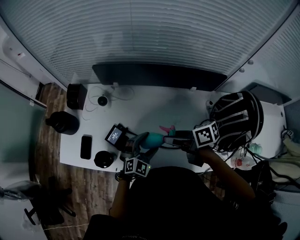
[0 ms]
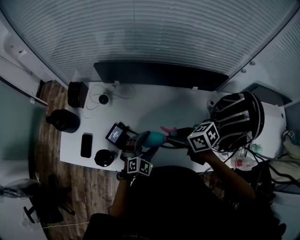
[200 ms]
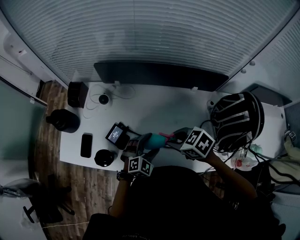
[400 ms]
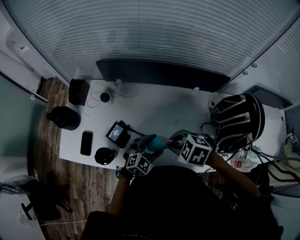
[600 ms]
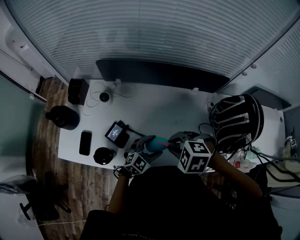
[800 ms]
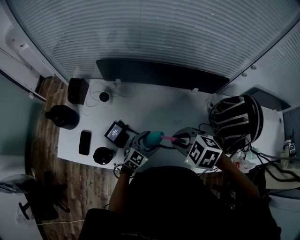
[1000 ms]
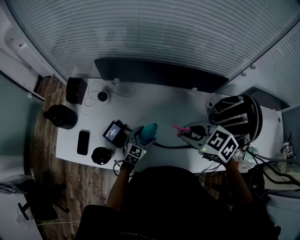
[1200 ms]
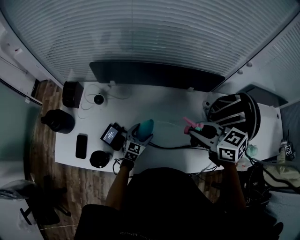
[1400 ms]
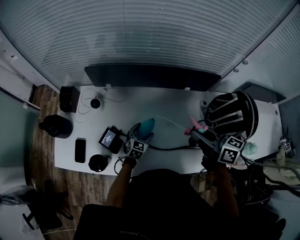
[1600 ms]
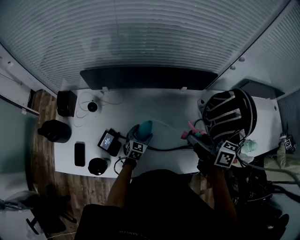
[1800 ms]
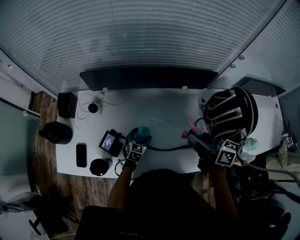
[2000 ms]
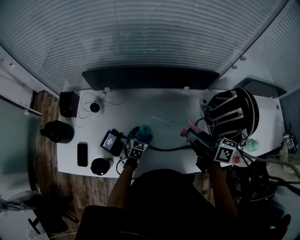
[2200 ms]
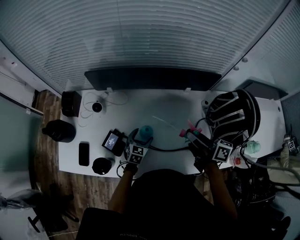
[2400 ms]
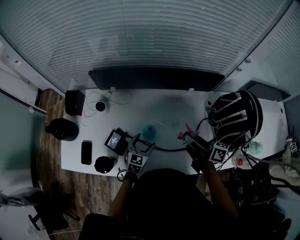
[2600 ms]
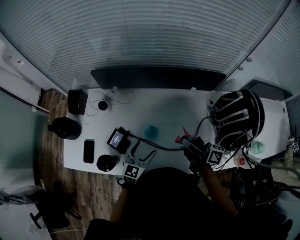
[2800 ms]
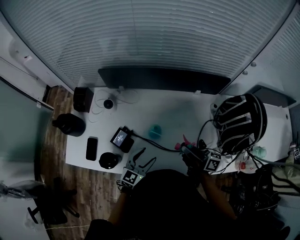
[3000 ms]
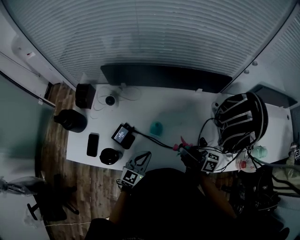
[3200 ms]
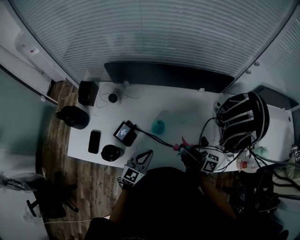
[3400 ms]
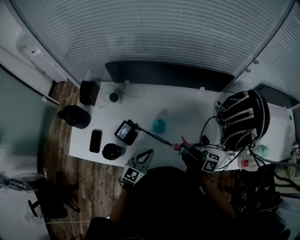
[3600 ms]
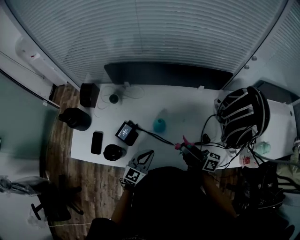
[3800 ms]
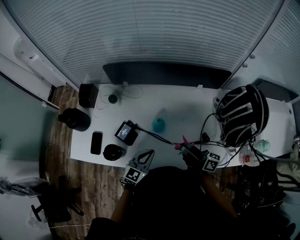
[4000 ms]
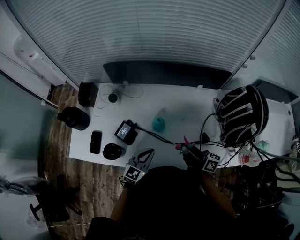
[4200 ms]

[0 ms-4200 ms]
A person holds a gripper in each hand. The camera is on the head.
0 ms to 1400 ms: The right gripper moves approximately 10 cm, rotates roughly 40 degrees, and closes; the left gripper shifts some 10 cm downward, and swivels some 30 degrees.
1400 ms to 2800 ms: The left gripper heads upward and backward, covering some 10 cm; the right gripper shifts approximately 10 cm downward, and angles its fingers upward, by roughly 30 degrees.
2800 ms to 4200 ms: Both grippers travel together backward, approximately 10 cm. The left gripper closes its fingers.

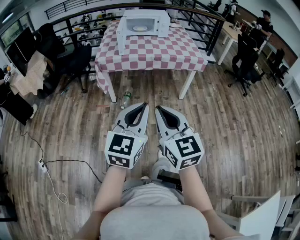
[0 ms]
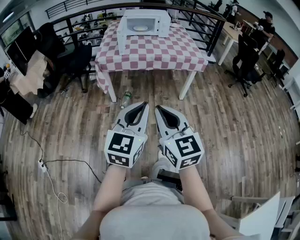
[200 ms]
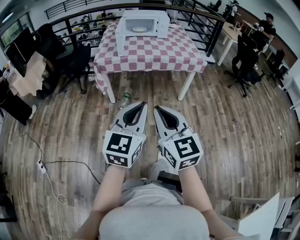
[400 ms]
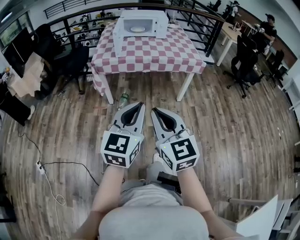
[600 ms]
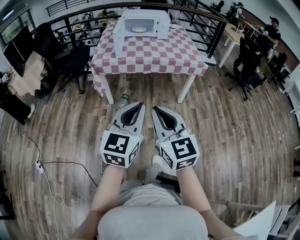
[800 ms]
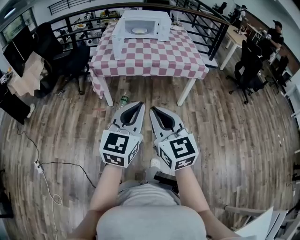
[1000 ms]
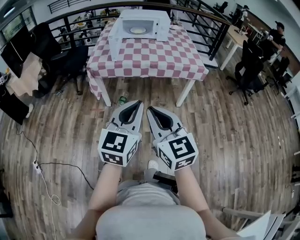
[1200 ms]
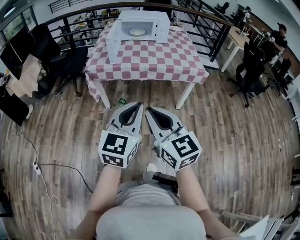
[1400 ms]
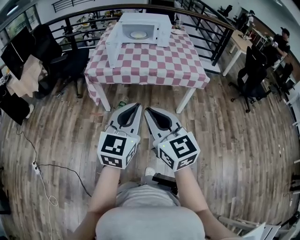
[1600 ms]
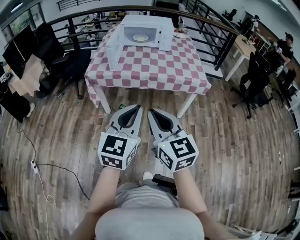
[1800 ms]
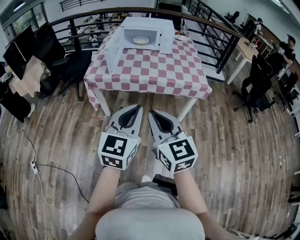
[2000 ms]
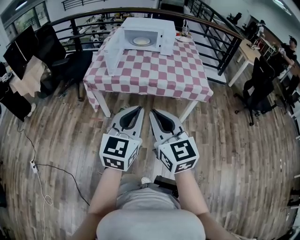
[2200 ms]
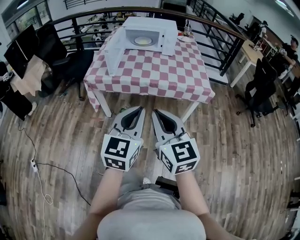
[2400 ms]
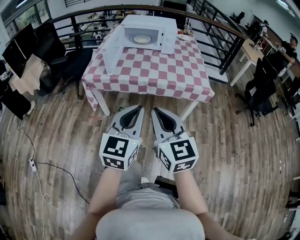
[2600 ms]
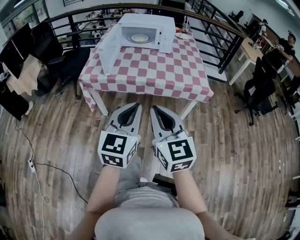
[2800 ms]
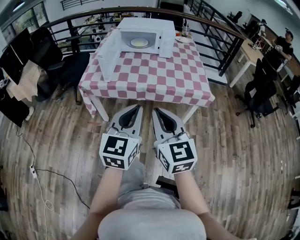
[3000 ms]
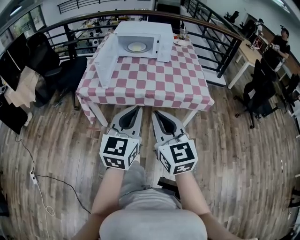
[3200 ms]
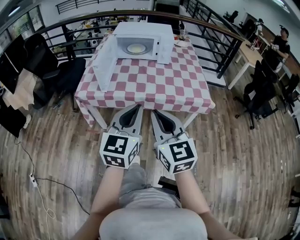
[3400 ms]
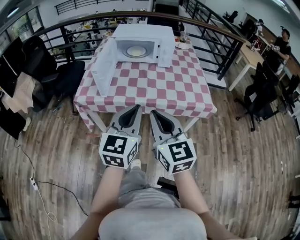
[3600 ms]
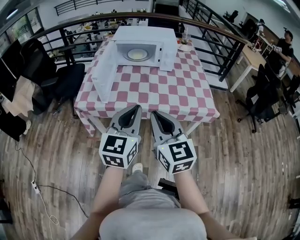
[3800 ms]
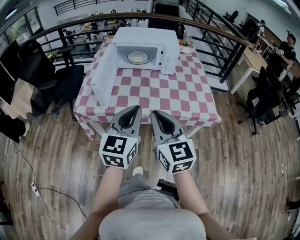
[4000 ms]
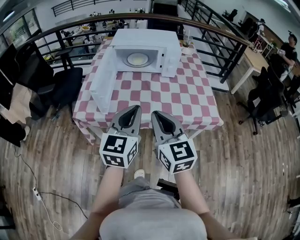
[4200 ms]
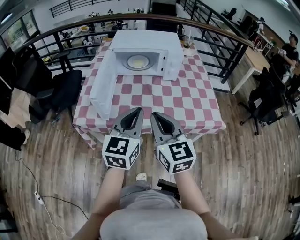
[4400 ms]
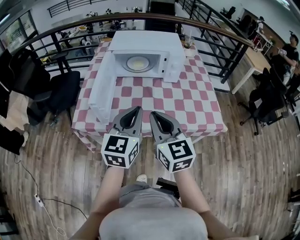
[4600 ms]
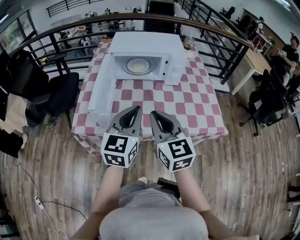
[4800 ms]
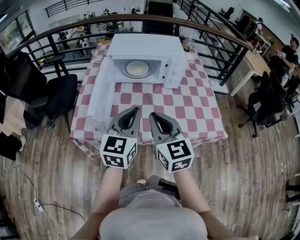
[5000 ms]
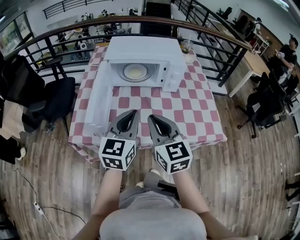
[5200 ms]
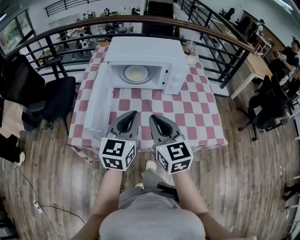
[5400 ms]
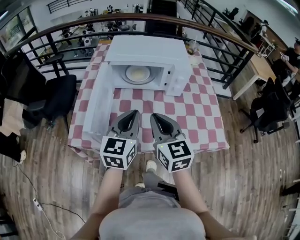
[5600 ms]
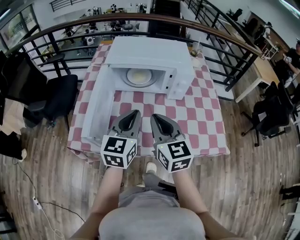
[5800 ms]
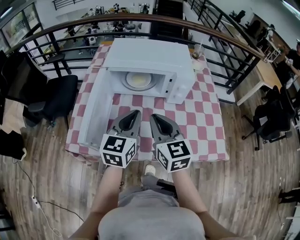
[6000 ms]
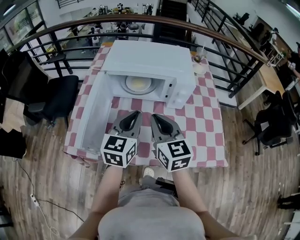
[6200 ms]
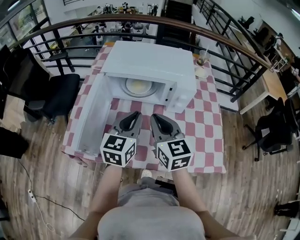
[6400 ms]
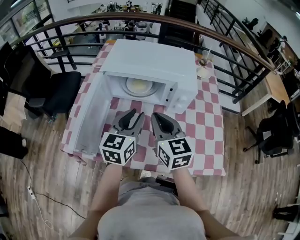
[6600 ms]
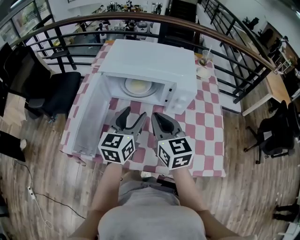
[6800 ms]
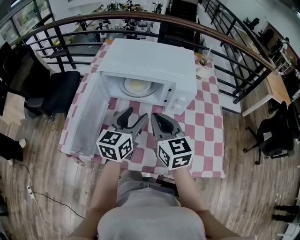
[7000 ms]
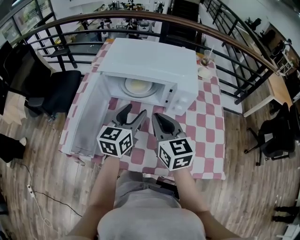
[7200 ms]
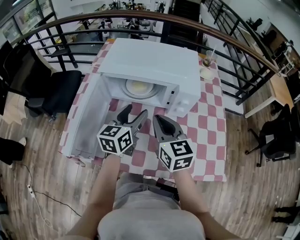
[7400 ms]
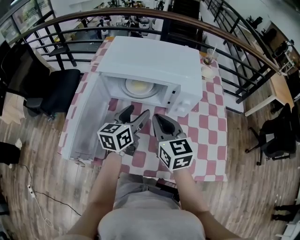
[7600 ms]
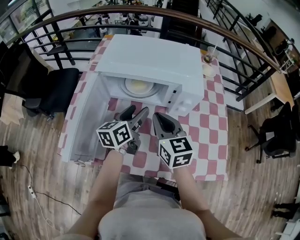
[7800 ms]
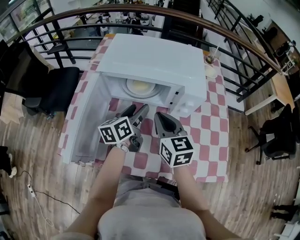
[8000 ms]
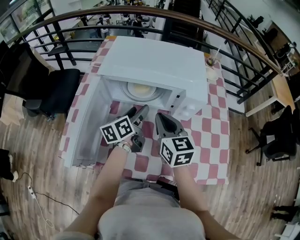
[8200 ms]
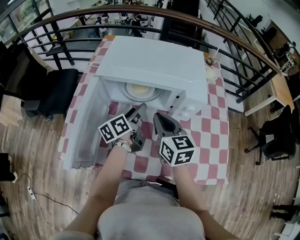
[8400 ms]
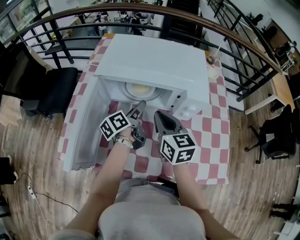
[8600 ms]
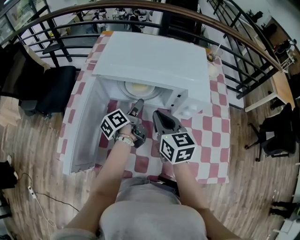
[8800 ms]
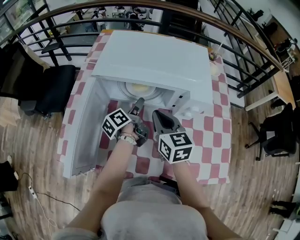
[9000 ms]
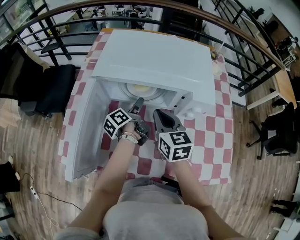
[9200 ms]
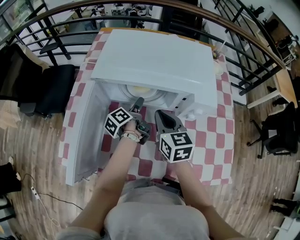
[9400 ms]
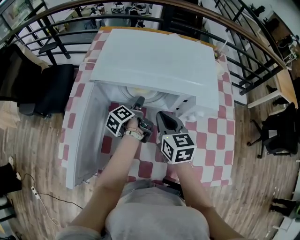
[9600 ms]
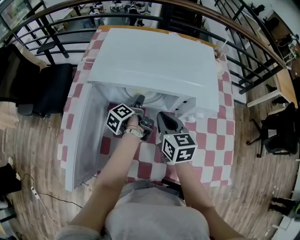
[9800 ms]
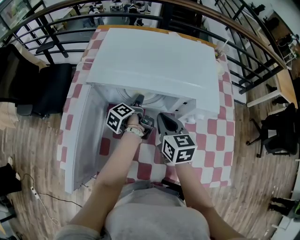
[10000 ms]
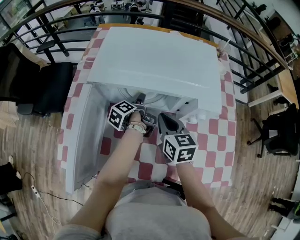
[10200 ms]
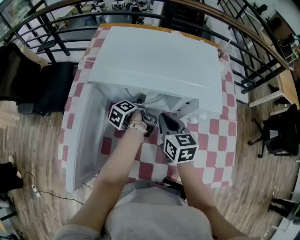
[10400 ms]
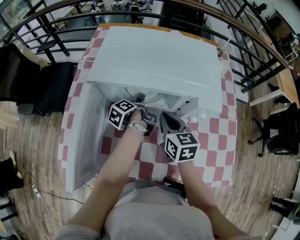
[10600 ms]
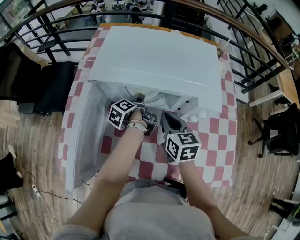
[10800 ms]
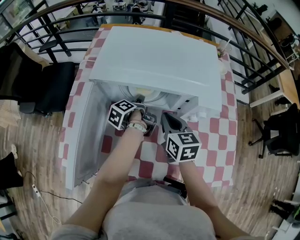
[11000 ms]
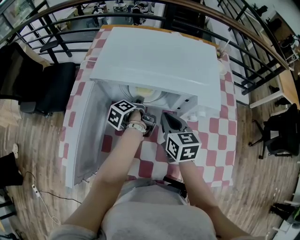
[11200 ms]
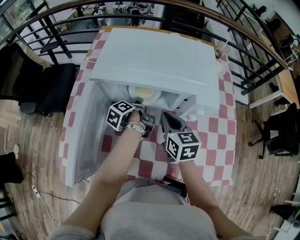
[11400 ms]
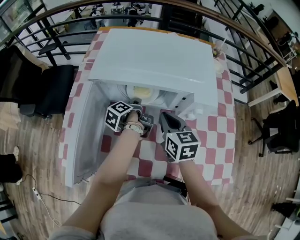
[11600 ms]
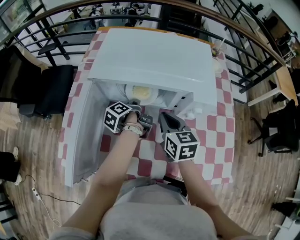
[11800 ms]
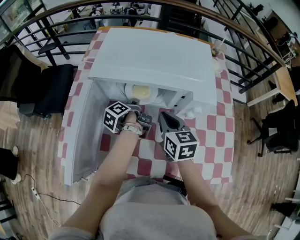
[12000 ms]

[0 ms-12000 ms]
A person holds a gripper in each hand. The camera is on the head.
0 ms to 1600 ms: Both grippers travel together forward, about 20 cm.
1600 ms to 3000 ms: The left gripper goes approximately 15 cm forward. The right gripper goes about 20 cm forward and to the right.
3000 ms to 4400 ms: Both grippers travel together forward, approximately 25 cm.
4400 ms to 6000 ms: The grippers both shift forward by about 20 cm.
6000 ms to 7600 ms: The left gripper heads forward and downward, covering approximately 15 cm, swivels roughly 20 degrees, and opens up. Meanwhile the right gripper goes about 10 cm forward.
7600 ms to 9000 ms: The left gripper moves downward and forward, some 15 cm, and rolls counterclockwise, seen from behind, by about 50 degrees; the right gripper shifts some 5 cm forward.
9000 ms to 10400 ms: Both grippers travel together downward, some 5 cm. The left gripper swivels some 20 degrees.
10400 ms to 12000 ms: The left gripper closes.

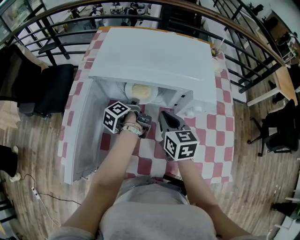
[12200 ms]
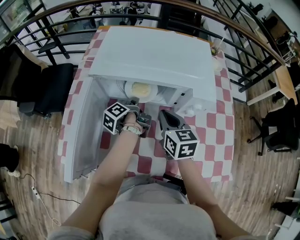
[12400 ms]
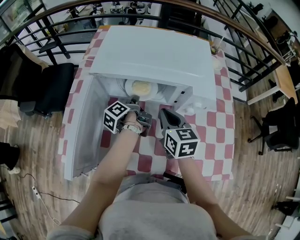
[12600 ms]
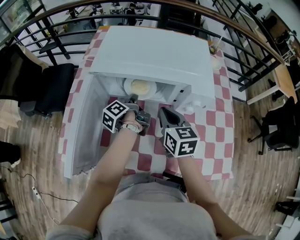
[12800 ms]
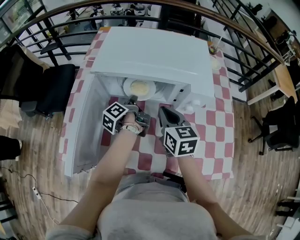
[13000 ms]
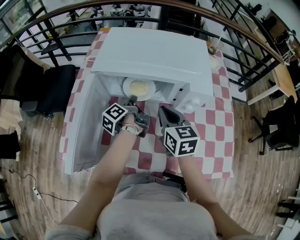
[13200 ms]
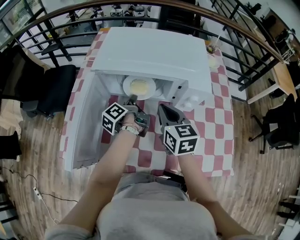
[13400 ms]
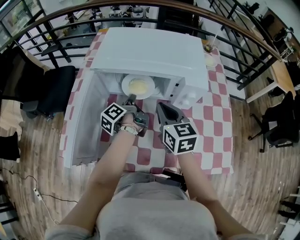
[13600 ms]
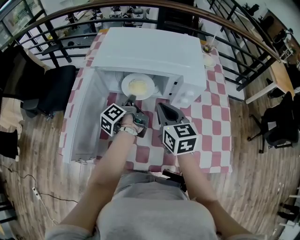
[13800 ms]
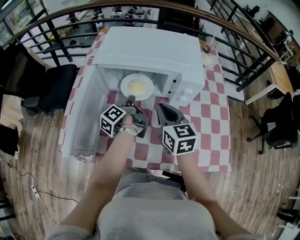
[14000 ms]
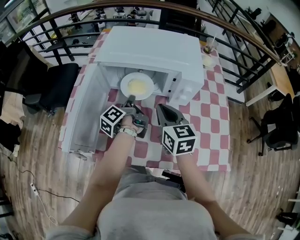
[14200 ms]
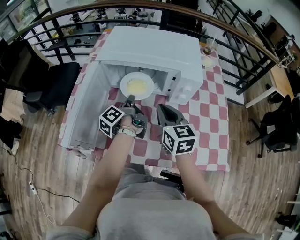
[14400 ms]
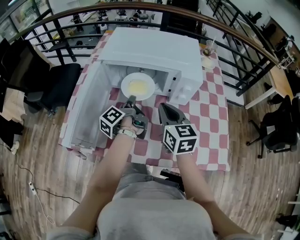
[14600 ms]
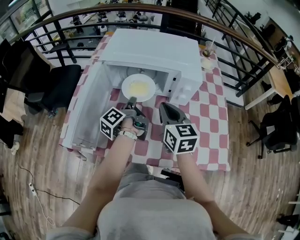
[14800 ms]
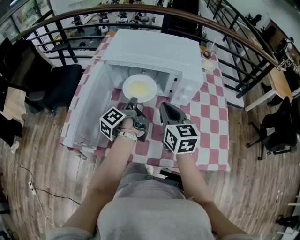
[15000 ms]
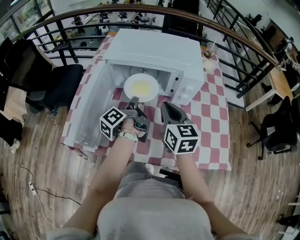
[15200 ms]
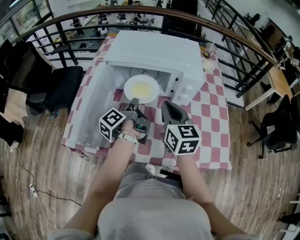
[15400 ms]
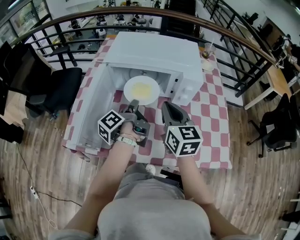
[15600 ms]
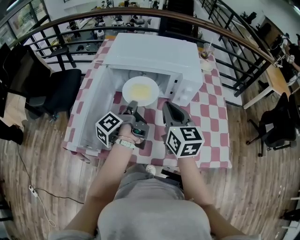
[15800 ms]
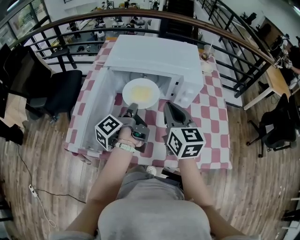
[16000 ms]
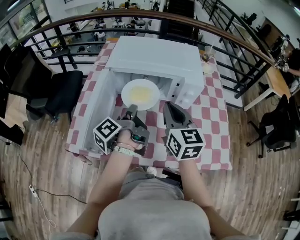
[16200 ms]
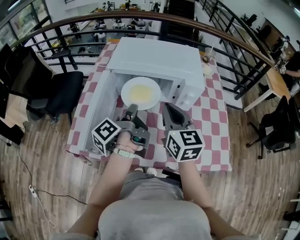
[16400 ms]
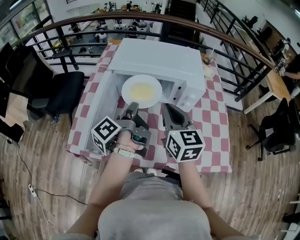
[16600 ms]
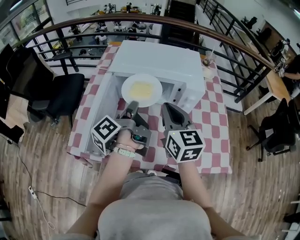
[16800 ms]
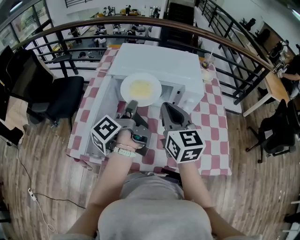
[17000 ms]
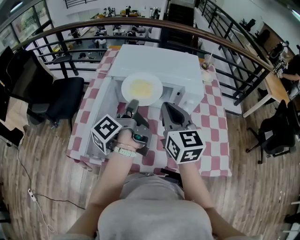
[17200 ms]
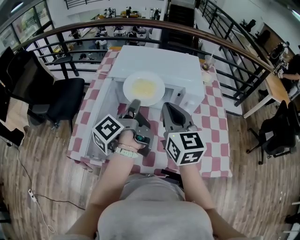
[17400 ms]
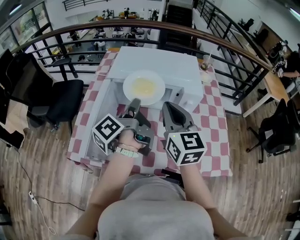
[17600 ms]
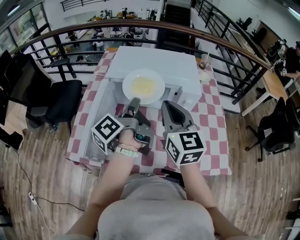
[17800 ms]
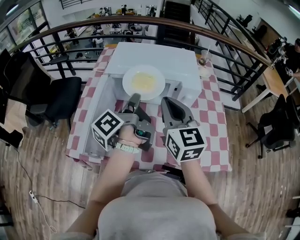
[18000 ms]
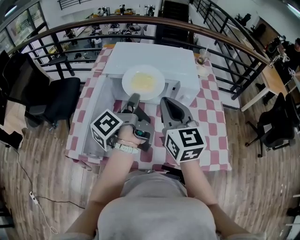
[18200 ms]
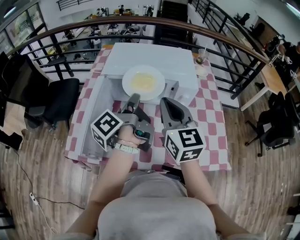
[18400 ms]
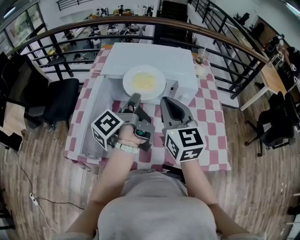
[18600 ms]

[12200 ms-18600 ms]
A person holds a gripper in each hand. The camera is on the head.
12200 ms to 13800 ms: The right gripper moves about 5 cm. The left gripper changes place by roughly 5 cm.
13800 ms to 15400 ms: The right gripper goes about 5 cm backward. The left gripper is displaced backward and upward by approximately 10 cm.
15400 ms to 17000 ms: Both grippers travel together upward, approximately 10 cm.
17000 ms to 18600 ms: The grippers make only small movements.

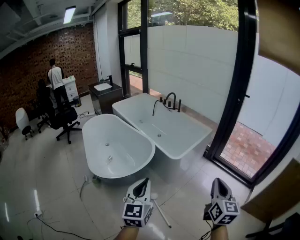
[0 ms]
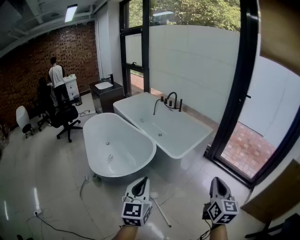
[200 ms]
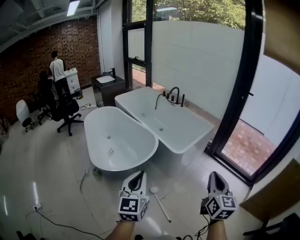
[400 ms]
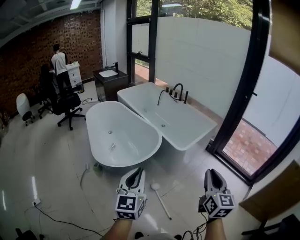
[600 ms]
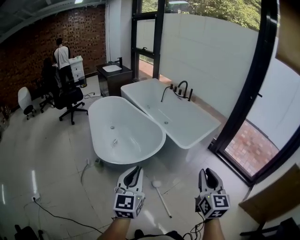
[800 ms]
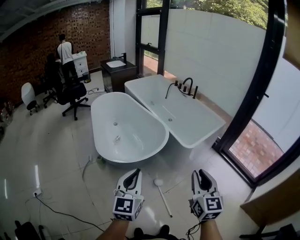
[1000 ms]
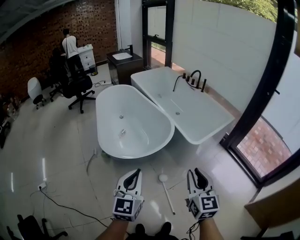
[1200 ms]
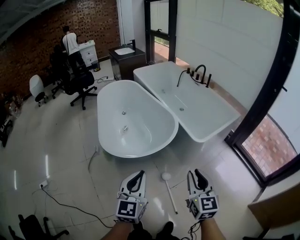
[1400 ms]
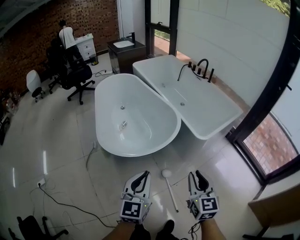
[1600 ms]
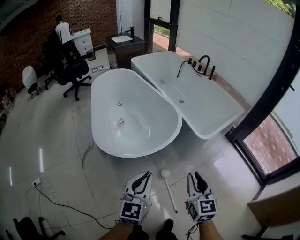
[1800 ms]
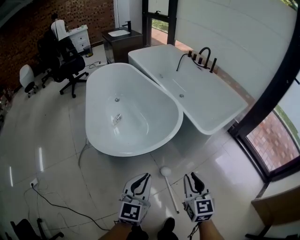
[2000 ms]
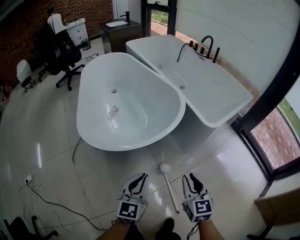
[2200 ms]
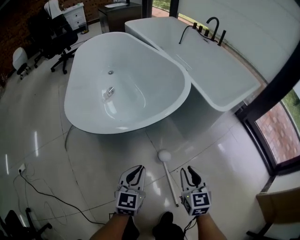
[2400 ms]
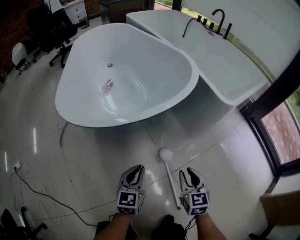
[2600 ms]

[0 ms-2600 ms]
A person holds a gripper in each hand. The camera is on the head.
0 ms to 1200 ms: The right gripper goes approximately 30 cm to the left, forward and downward, and turns by roughly 30 degrees. The left gripper moves to the left, downward and forward, roughly 20 cm.
1200 ms to 2600 ms: The two grippers go about 90 cm downward. The left gripper swivels about 20 degrees. The right gripper changes its angle by roughly 20 degrees.
